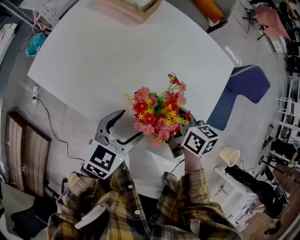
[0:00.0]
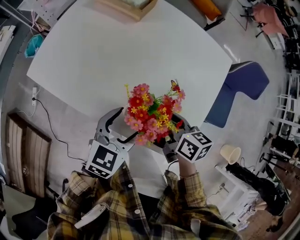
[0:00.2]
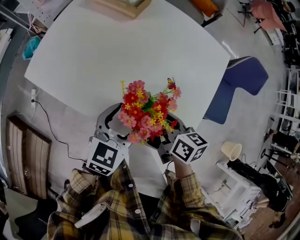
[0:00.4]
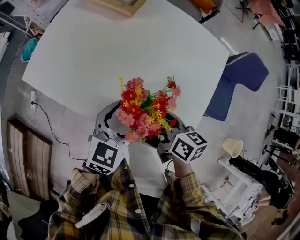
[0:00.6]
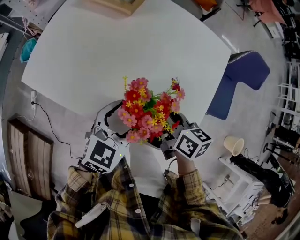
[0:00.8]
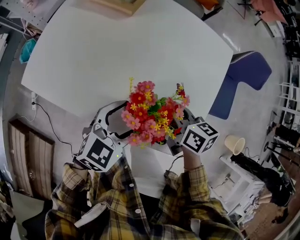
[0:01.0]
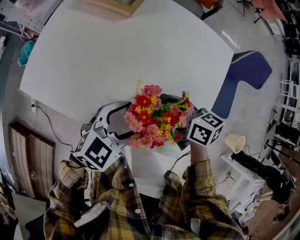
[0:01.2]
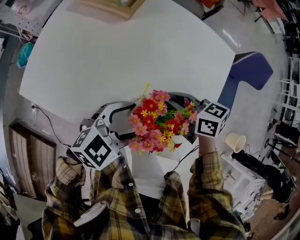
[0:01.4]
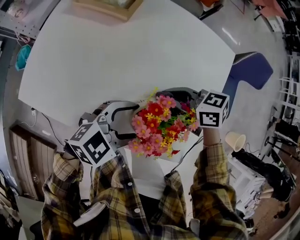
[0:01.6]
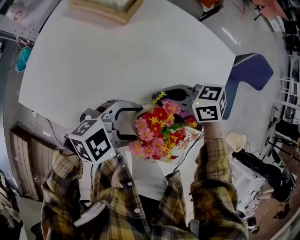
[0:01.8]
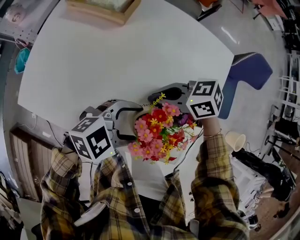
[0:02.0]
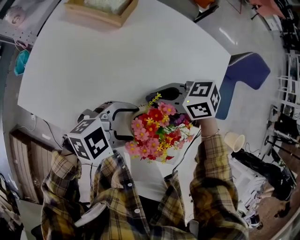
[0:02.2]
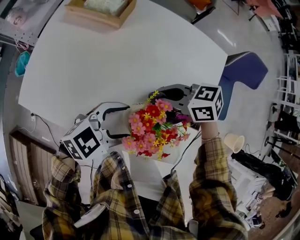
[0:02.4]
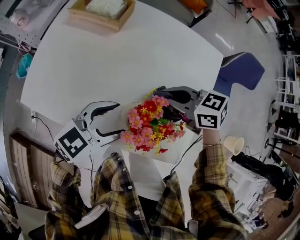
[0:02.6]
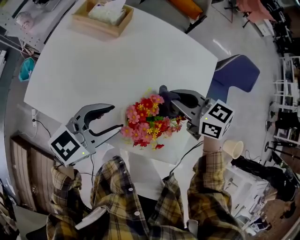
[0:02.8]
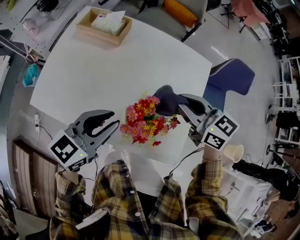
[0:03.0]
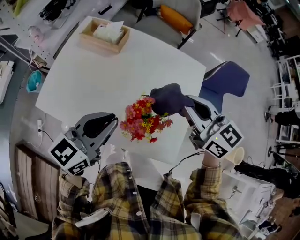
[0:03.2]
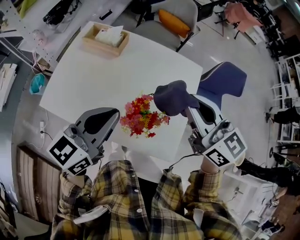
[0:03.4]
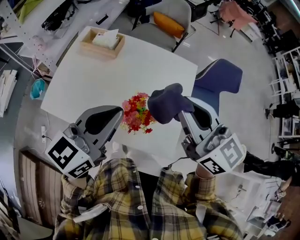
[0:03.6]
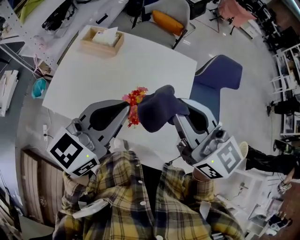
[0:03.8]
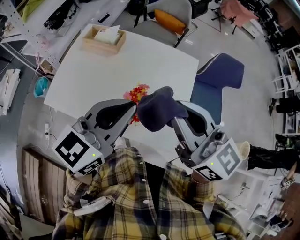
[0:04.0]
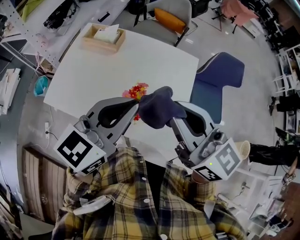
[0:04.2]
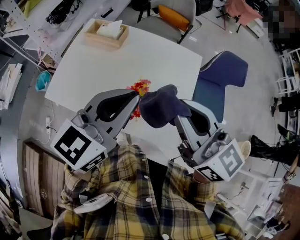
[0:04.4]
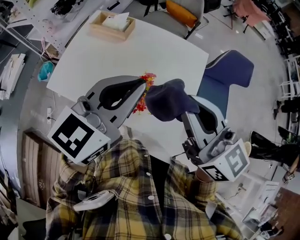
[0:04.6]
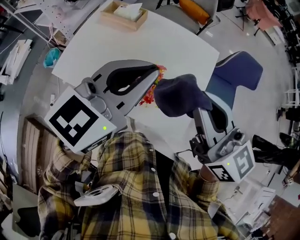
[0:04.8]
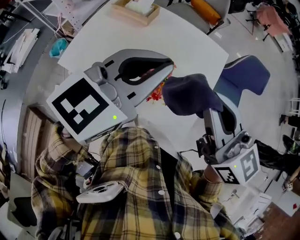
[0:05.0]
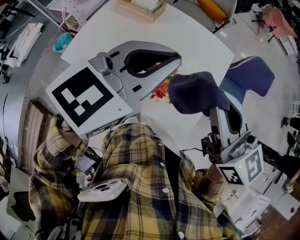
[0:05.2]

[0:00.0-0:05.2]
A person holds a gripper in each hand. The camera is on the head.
0.0 to 1.8 s: The left gripper rotates roughly 50 degrees. Meanwhile the right gripper changes place by approximately 5 cm, and rotates about 40 degrees.
1.8 to 3.4 s: The grippers both shift upward by roughly 25 cm. The left gripper changes its angle by approximately 50 degrees, and closes up. Meanwhile the right gripper changes its angle by approximately 60 degrees.
3.4 to 5.2 s: The right gripper travels backward by about 10 cm. Meanwhile the left gripper travels upward and to the right by about 10 cm.

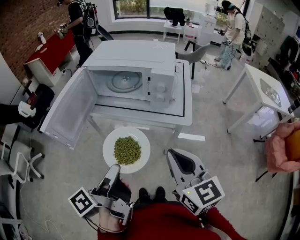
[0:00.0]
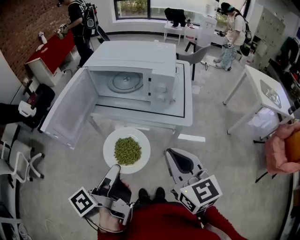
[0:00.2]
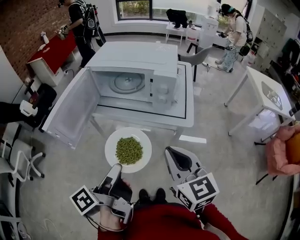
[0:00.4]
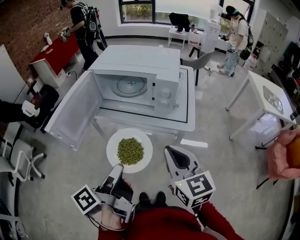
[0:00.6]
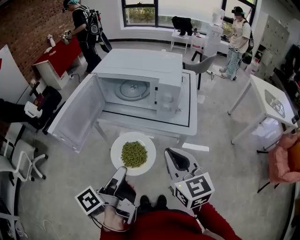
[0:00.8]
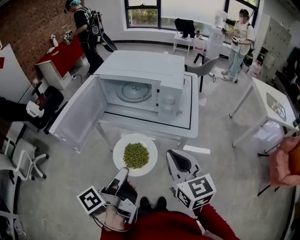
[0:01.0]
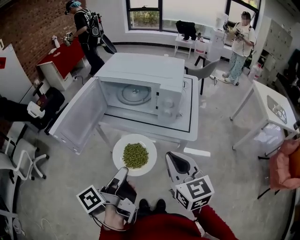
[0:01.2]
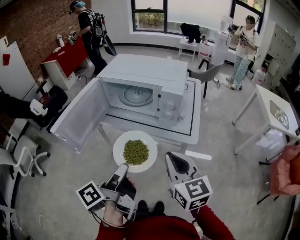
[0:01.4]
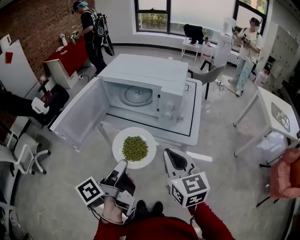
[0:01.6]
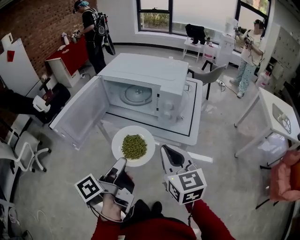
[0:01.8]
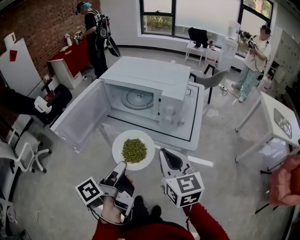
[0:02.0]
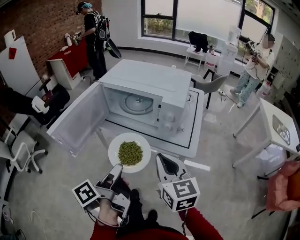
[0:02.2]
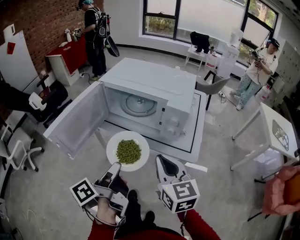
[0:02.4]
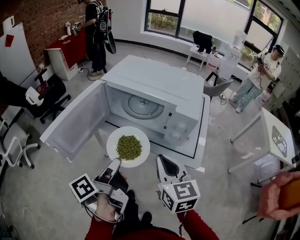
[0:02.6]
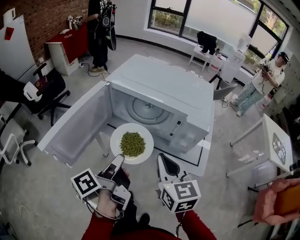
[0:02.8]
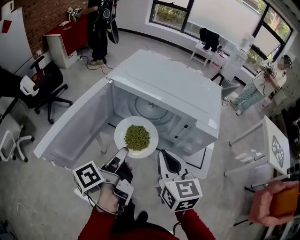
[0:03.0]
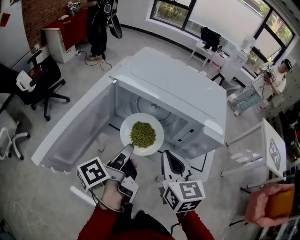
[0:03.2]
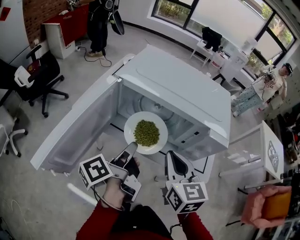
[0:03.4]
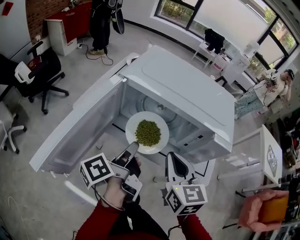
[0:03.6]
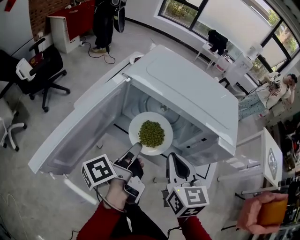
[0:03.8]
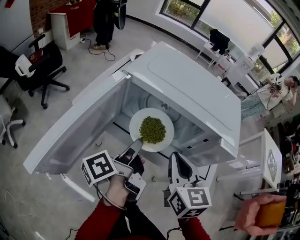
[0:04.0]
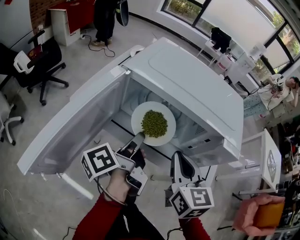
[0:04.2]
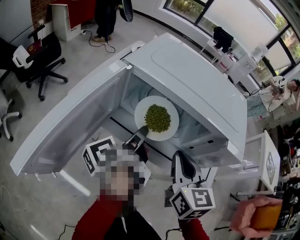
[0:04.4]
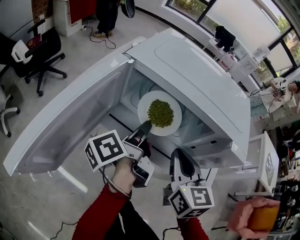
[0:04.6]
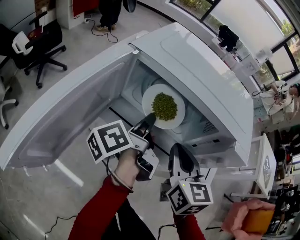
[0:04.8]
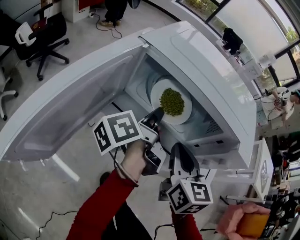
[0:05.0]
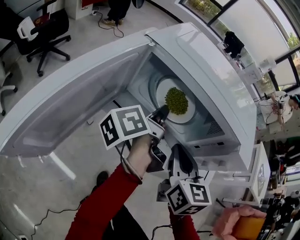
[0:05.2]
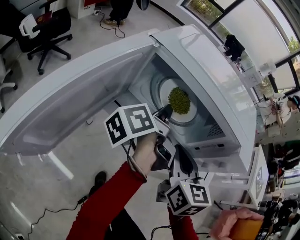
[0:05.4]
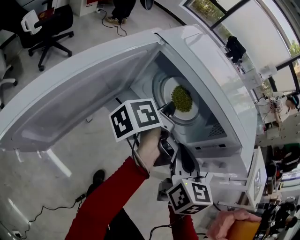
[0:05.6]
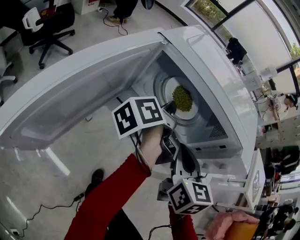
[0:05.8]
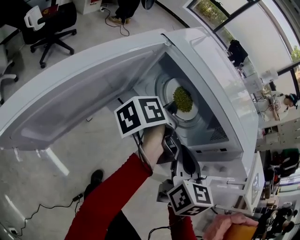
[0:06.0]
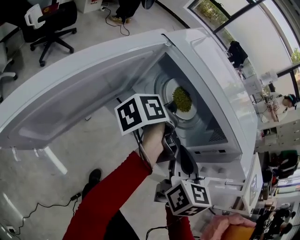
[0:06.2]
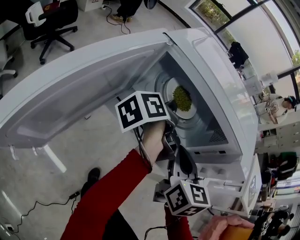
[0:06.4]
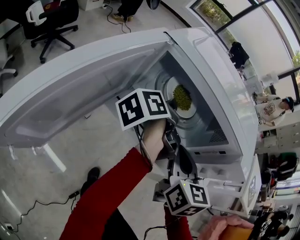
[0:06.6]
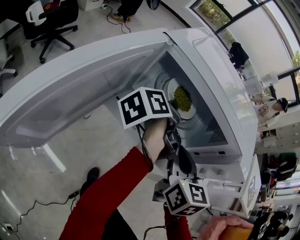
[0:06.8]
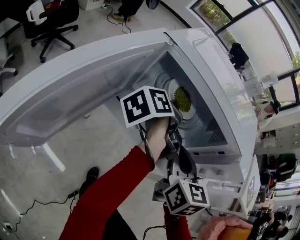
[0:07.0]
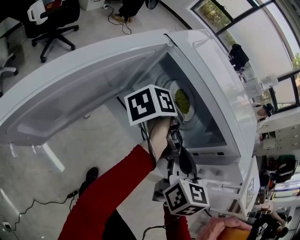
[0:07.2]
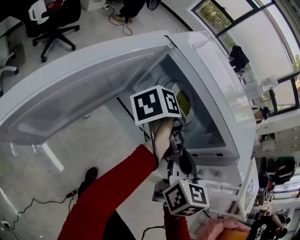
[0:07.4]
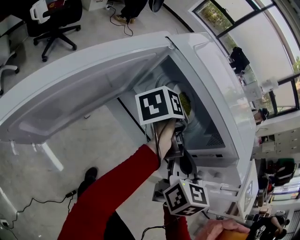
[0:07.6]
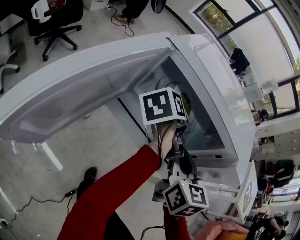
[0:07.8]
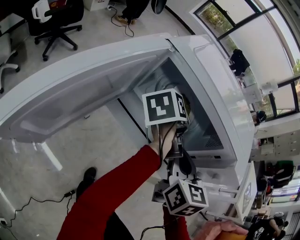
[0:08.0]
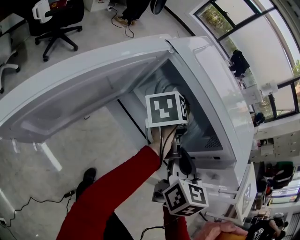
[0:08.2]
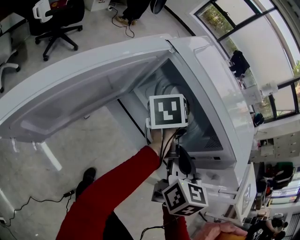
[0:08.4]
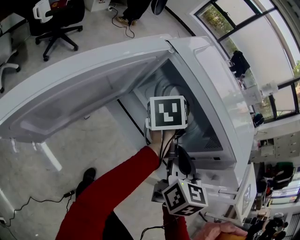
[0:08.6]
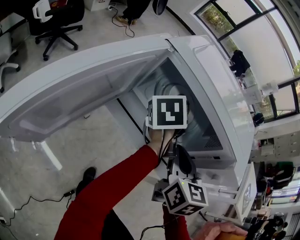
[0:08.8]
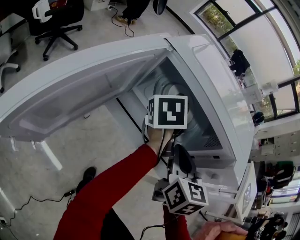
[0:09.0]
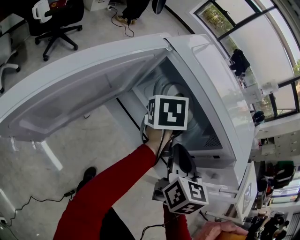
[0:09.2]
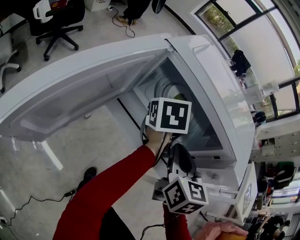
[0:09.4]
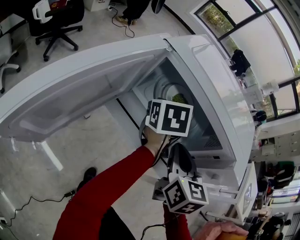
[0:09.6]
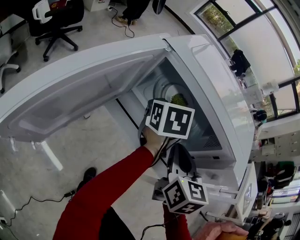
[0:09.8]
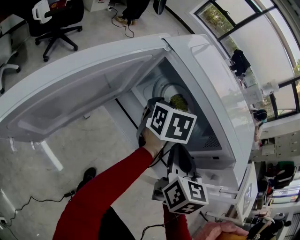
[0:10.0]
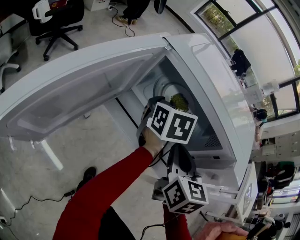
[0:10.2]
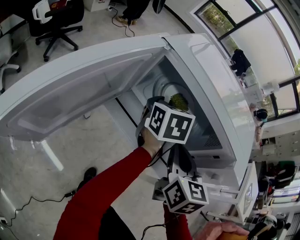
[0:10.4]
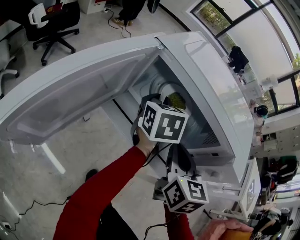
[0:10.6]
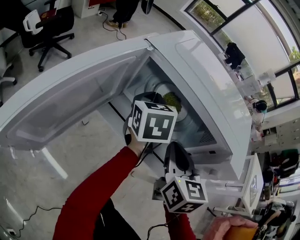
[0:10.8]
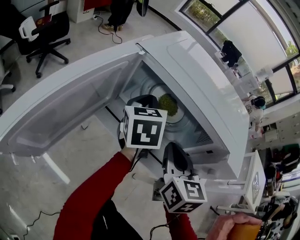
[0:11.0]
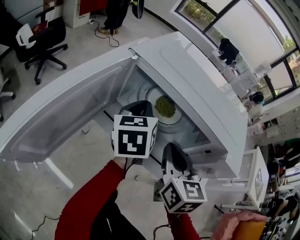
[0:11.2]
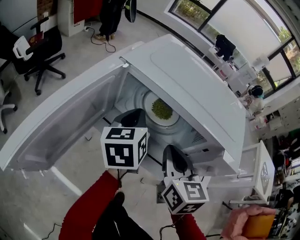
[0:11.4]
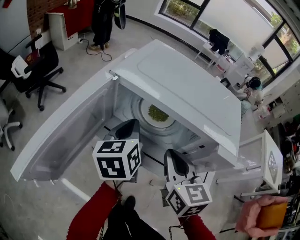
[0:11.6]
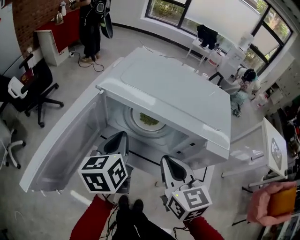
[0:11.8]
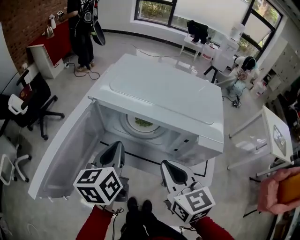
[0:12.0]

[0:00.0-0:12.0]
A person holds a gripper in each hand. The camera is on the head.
0.0 to 1.6 s: The left gripper ends up some 5 cm from where it was. Meanwhile the right gripper is displaced forward by about 5 cm.
1.6 to 3.0 s: The right gripper travels forward and to the left by roughly 20 cm; the left gripper shifts approximately 20 cm forward.
3.0 to 4.4 s: The left gripper is displaced forward by roughly 10 cm, while the right gripper ends up approximately 5 cm from where it was.
4.4 to 6.0 s: The left gripper goes approximately 10 cm forward, while the right gripper shifts by approximately 5 cm.
6.0 to 7.6 s: There are only small adjustments of the grippers.
7.6 to 9.0 s: The left gripper swivels about 30 degrees.
9.0 to 10.4 s: The left gripper swivels some 20 degrees.
10.4 to 12.0 s: The left gripper goes roughly 15 cm backward, upward and to the left, and closes; the right gripper goes about 10 cm backward and upward.

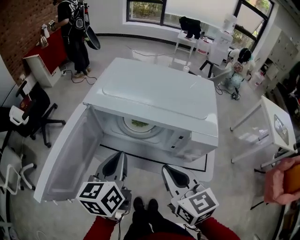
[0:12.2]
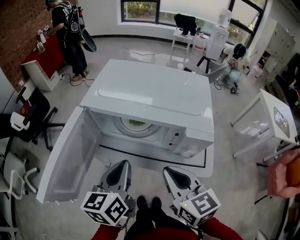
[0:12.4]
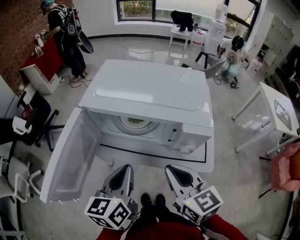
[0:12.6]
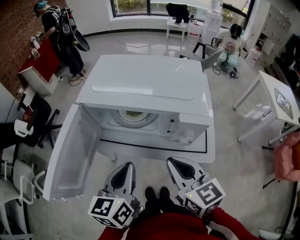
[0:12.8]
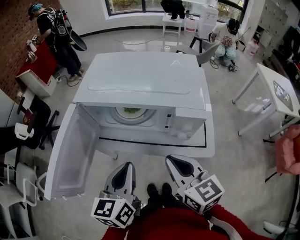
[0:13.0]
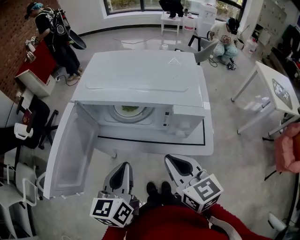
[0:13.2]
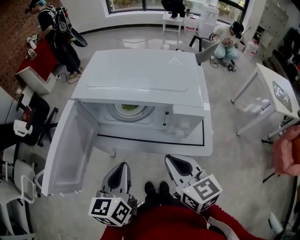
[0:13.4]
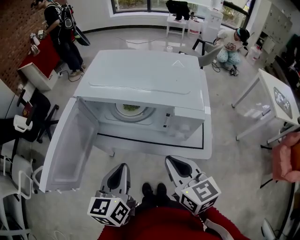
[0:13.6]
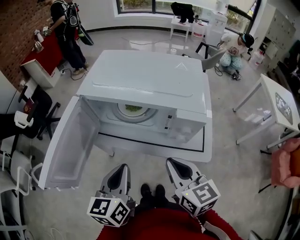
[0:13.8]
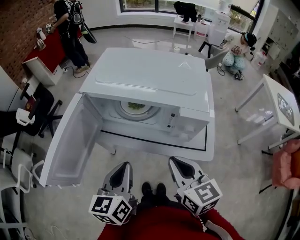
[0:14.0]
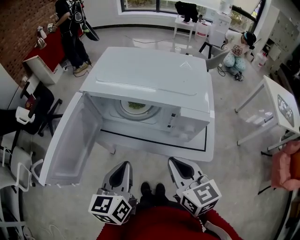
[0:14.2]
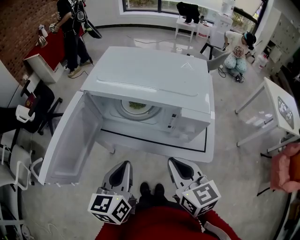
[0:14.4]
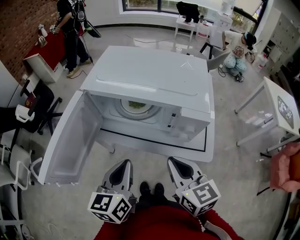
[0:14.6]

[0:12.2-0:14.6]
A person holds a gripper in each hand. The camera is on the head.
12.2 to 13.4 s: The left gripper moves backward, about 10 cm, while the right gripper moves approximately 5 cm.
13.4 to 14.6 s: Neither gripper changes place.

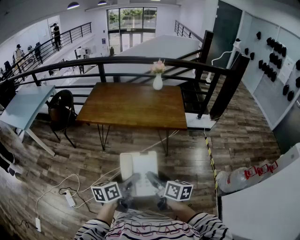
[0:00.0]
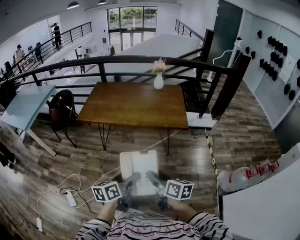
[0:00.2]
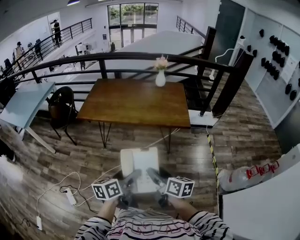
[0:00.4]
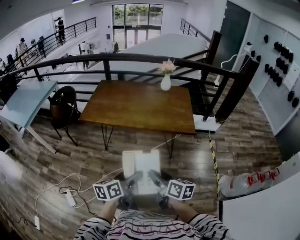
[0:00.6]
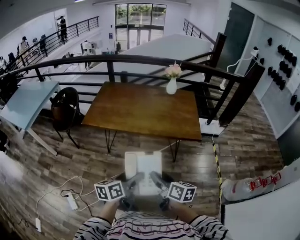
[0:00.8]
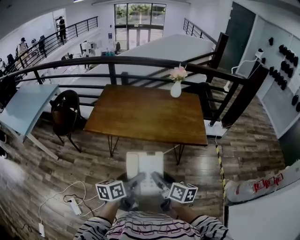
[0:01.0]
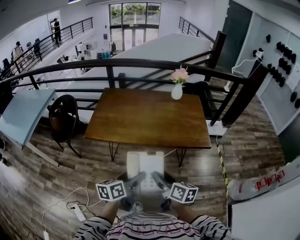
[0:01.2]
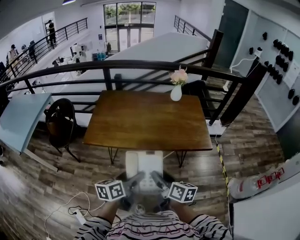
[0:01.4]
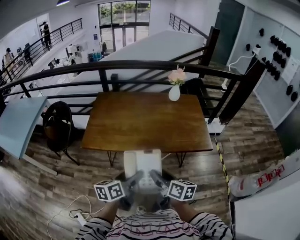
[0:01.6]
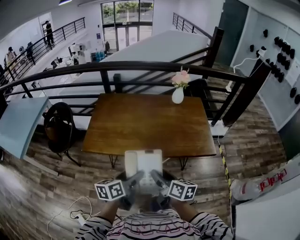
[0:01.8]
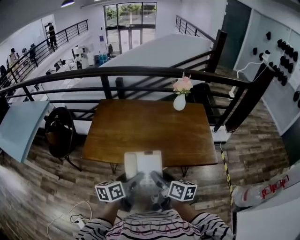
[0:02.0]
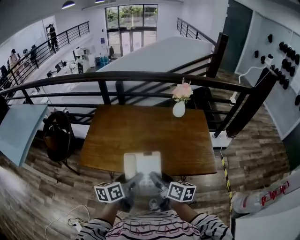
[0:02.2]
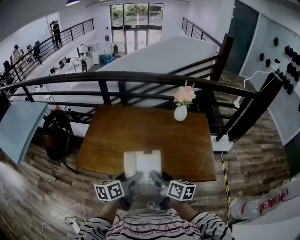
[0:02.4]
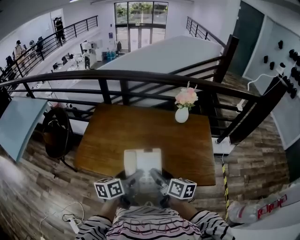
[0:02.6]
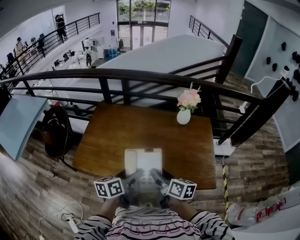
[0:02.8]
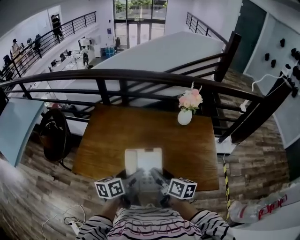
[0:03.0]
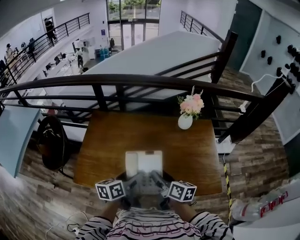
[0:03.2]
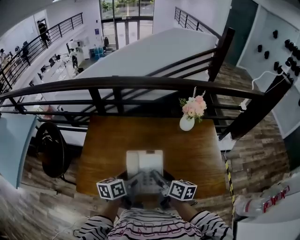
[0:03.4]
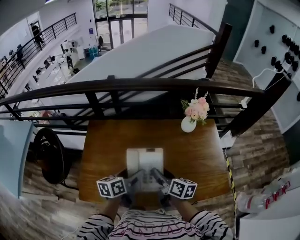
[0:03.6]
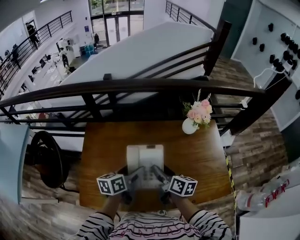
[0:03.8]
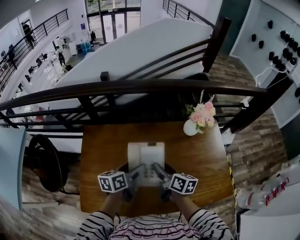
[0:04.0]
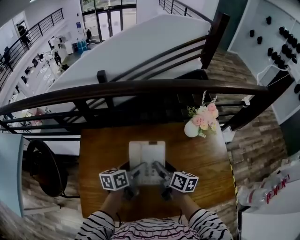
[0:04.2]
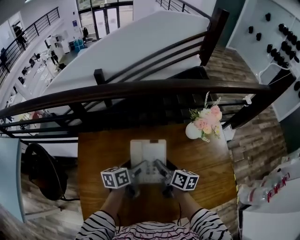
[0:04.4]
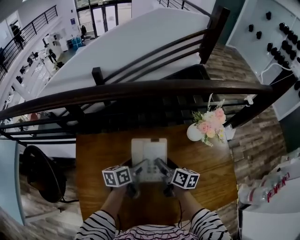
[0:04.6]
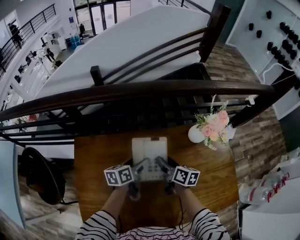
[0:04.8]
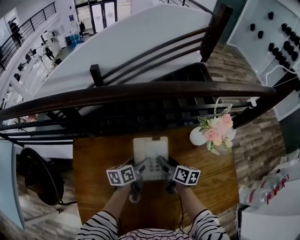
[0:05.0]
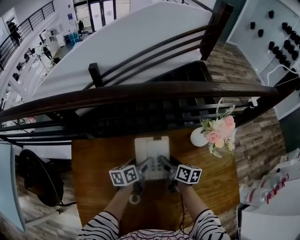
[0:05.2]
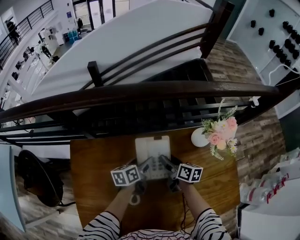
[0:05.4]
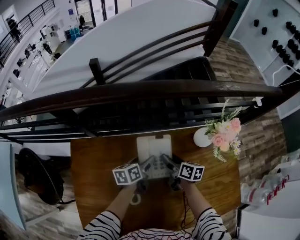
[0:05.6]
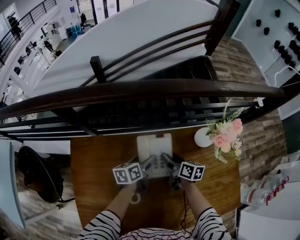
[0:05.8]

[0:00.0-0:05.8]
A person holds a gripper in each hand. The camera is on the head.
0.0 to 1.4 s: Both grippers travel together forward and to the left, approximately 35 cm.
1.4 to 2.8 s: Both grippers travel together forward, roughly 30 cm.
2.8 to 4.4 s: Both grippers travel together forward, some 40 cm.
4.4 to 5.8 s: The grippers both shift forward and downward by approximately 15 cm.
